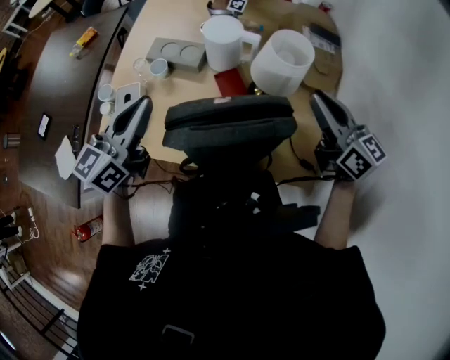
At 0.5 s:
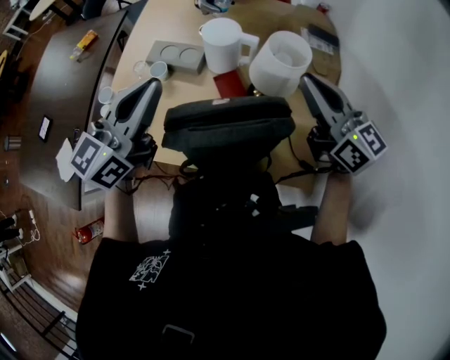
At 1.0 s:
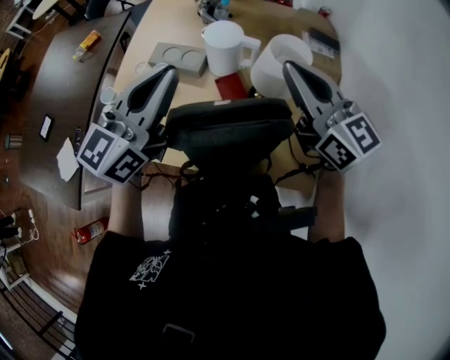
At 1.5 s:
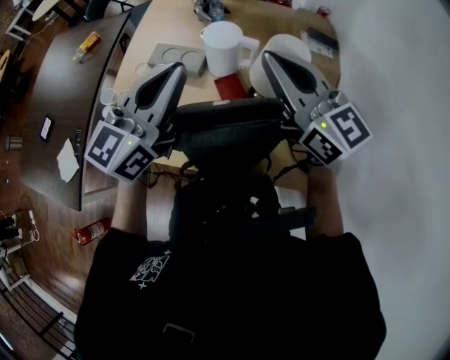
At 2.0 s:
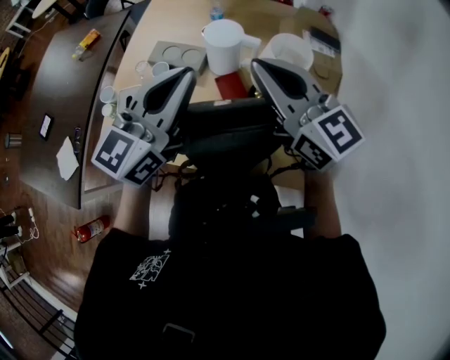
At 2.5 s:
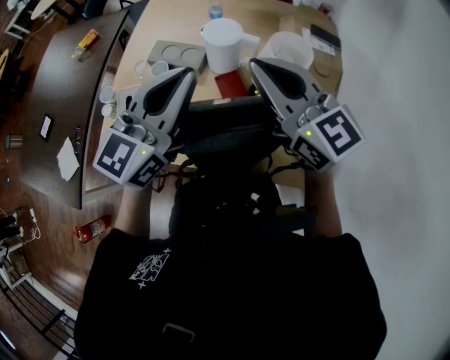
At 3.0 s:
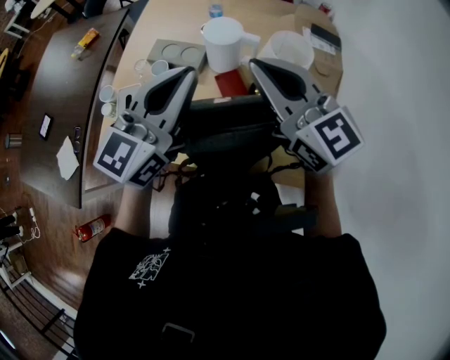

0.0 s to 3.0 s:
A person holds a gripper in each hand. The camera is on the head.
0.0 to 1.5 s: The left gripper travels to the right and upward by about 10 cm. Meanwhile the right gripper is displaced to the left and upward by roughly 15 cm.
1.5 to 3.0 s: The grippers stay close to where they were, moving slightly.

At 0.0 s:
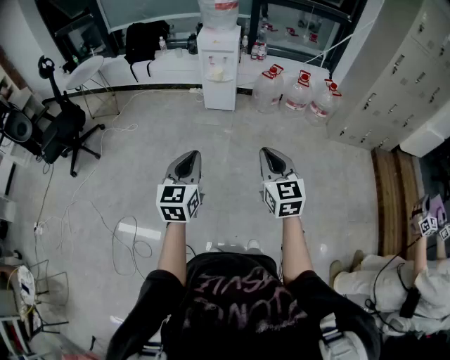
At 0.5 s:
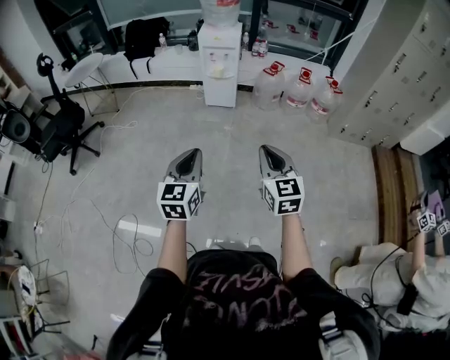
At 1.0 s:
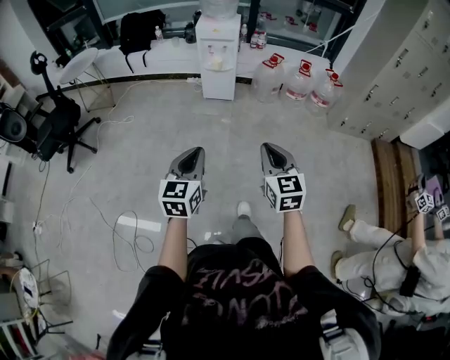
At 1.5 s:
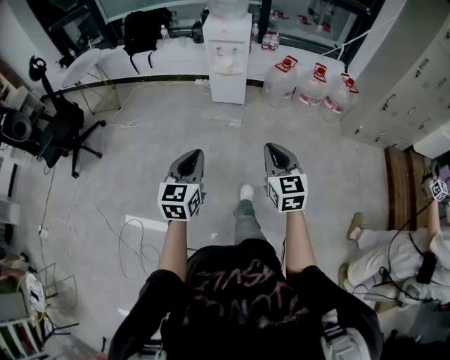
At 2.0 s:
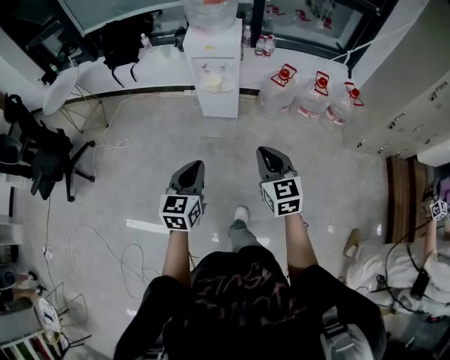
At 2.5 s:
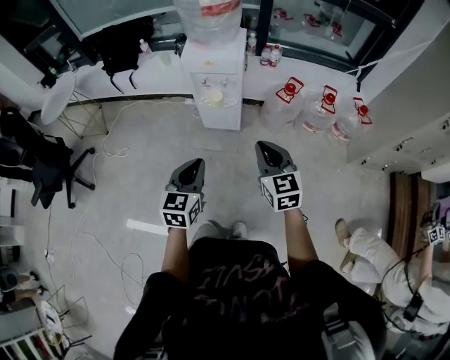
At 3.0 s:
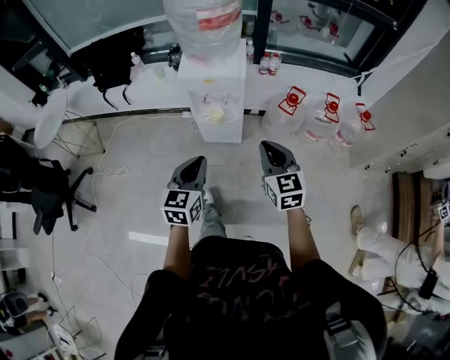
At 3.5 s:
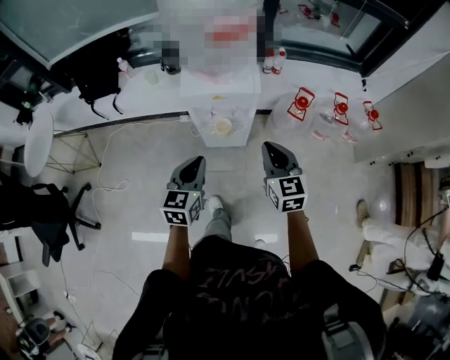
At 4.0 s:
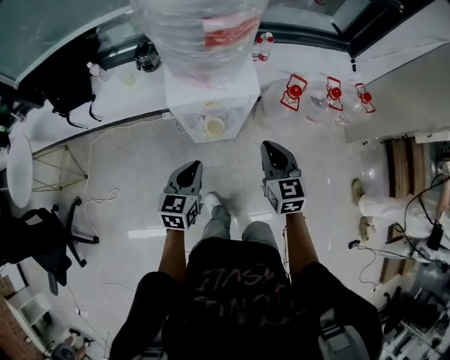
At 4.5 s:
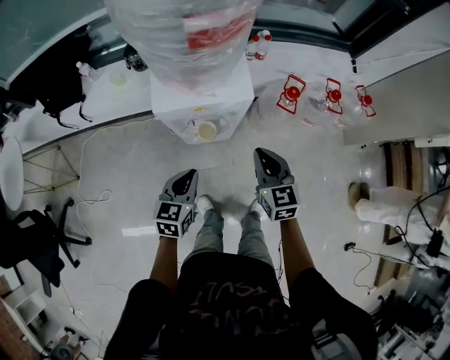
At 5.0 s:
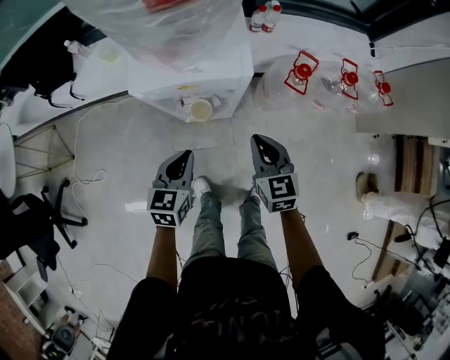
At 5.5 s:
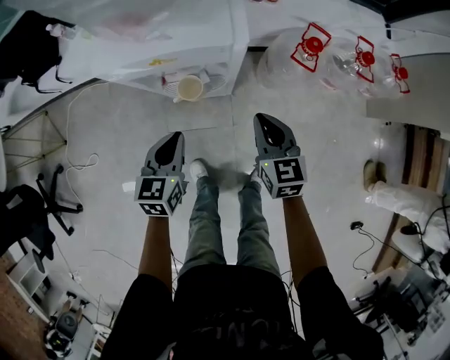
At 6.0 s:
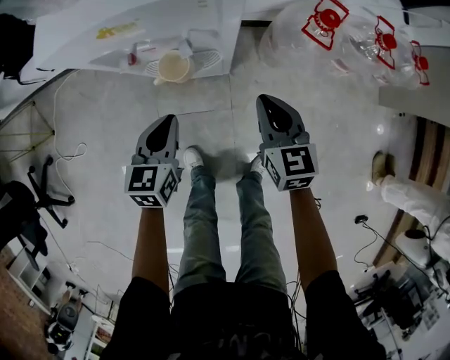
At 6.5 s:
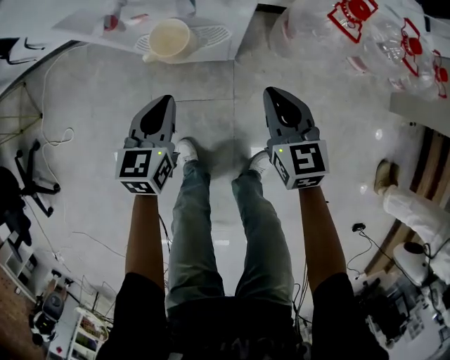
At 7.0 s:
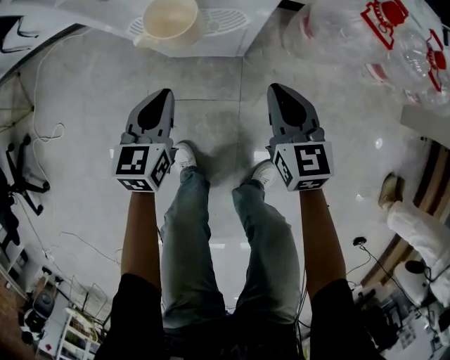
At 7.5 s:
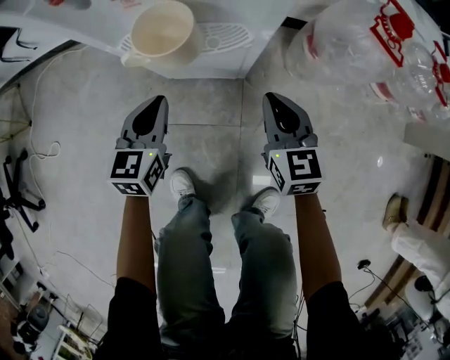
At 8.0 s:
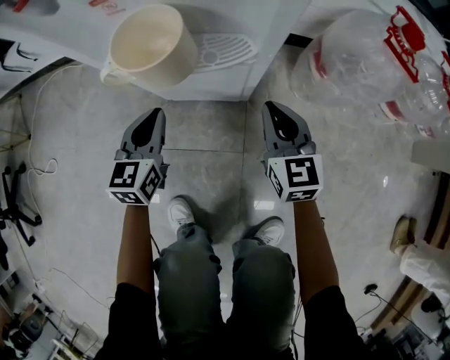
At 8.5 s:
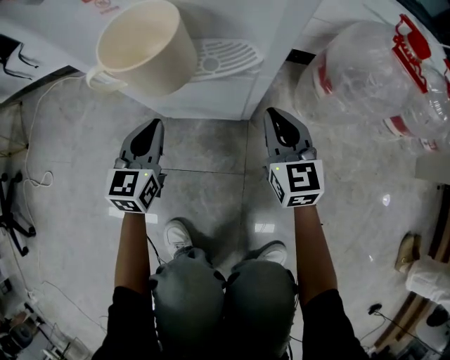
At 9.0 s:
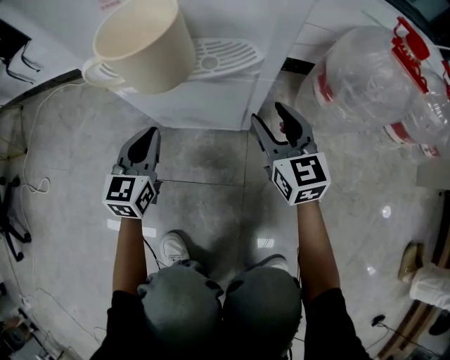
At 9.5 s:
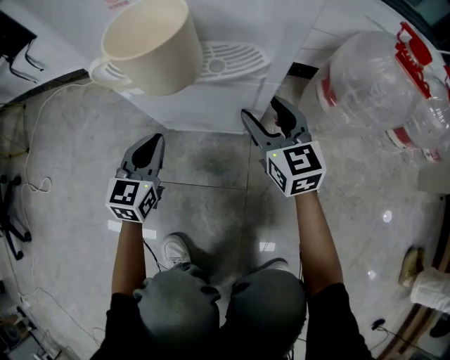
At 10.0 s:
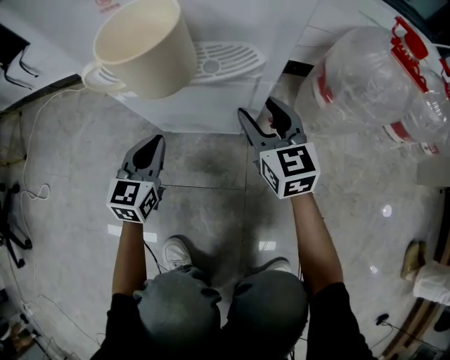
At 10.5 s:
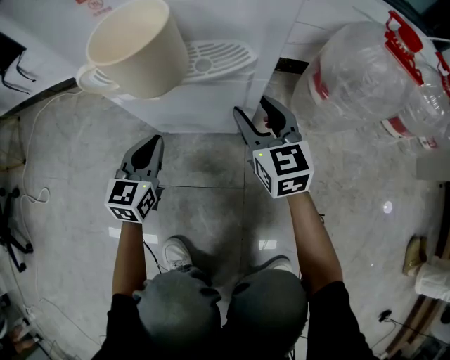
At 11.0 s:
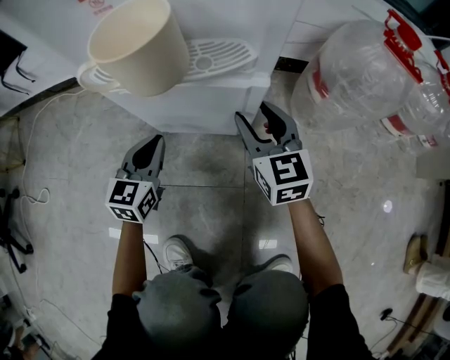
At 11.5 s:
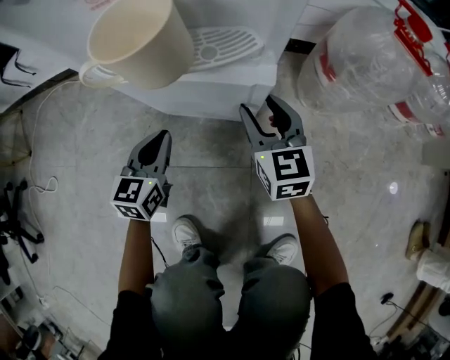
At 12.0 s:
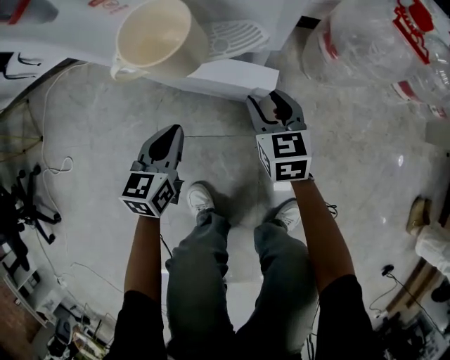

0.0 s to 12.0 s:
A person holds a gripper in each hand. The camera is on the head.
0.0 to 2.0 s: Both grippers travel together forward, roughly 40 cm.
2.0 to 4.0 s: The pair of grippers is taken forward, some 50 cm. The left gripper rotates roughly 20 degrees.
4.0 to 6.0 s: The two grippers go about 25 cm downward.
6.0 to 8.0 s: The grippers both shift downward by approximately 30 cm.
8.0 to 10.0 s: The right gripper goes roughly 5 cm forward, and opens its fingers. Meanwhile the left gripper goes roughly 10 cm downward.
10.0 to 12.0 s: The left gripper is displaced backward and upward by roughly 10 cm. Meanwhile the right gripper shifts about 5 cm backward.

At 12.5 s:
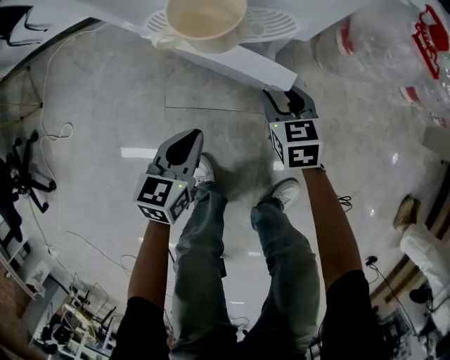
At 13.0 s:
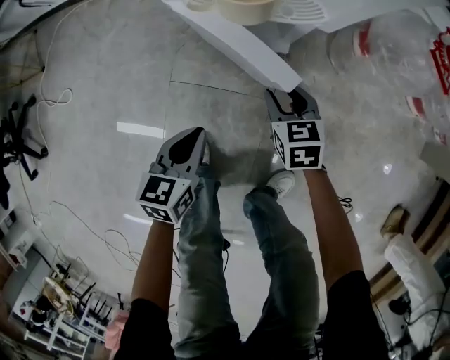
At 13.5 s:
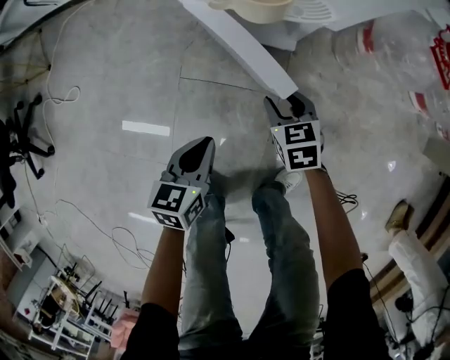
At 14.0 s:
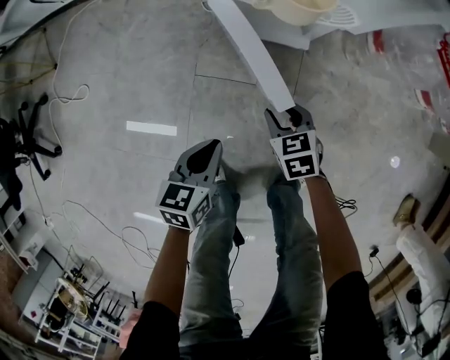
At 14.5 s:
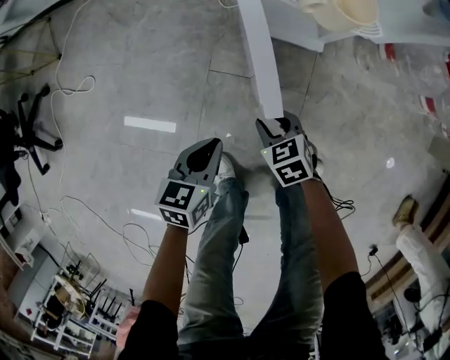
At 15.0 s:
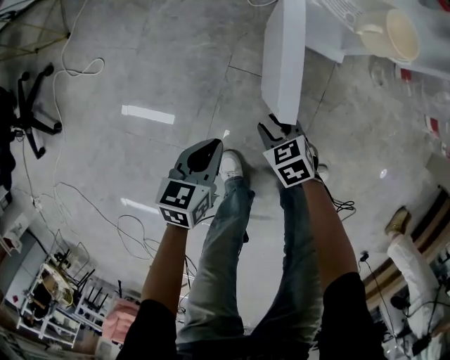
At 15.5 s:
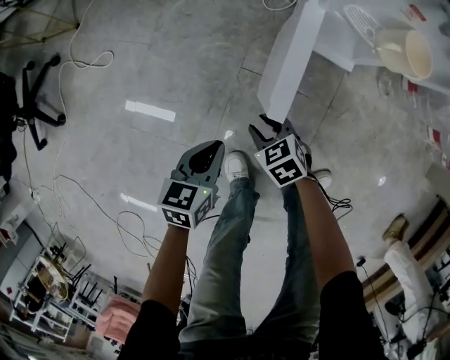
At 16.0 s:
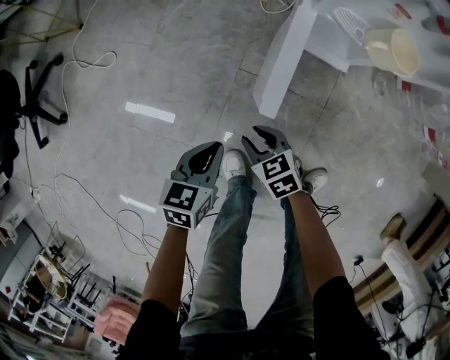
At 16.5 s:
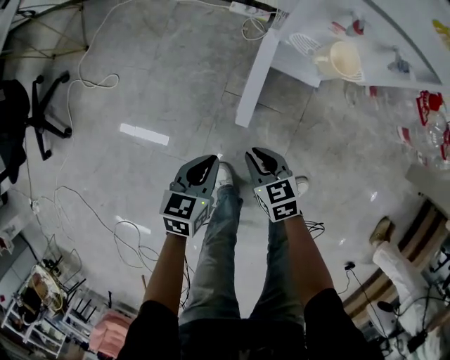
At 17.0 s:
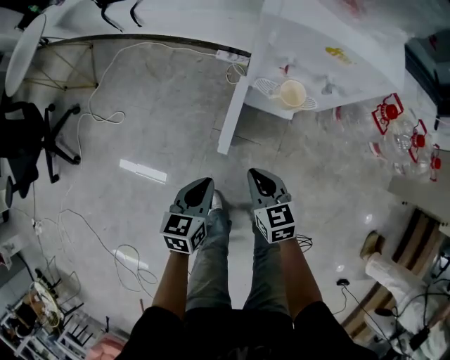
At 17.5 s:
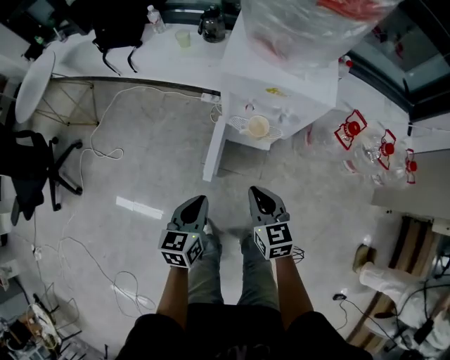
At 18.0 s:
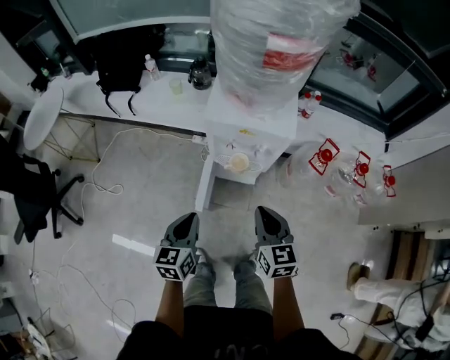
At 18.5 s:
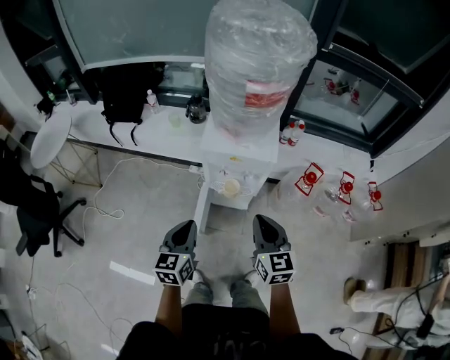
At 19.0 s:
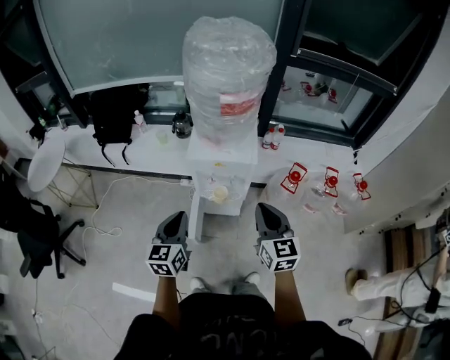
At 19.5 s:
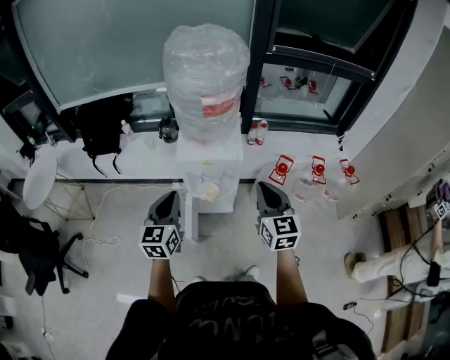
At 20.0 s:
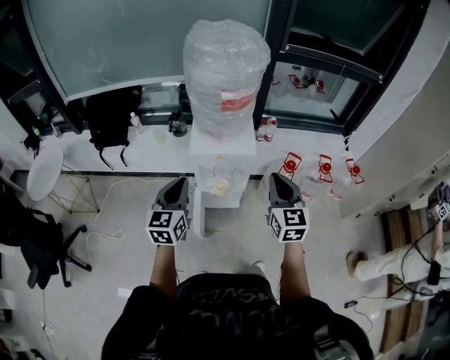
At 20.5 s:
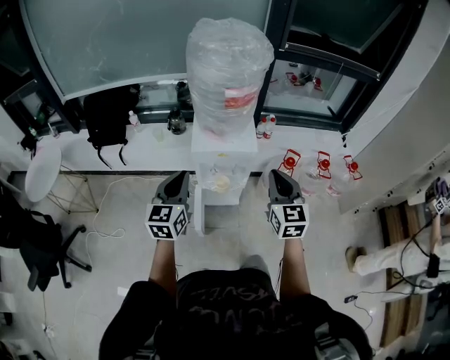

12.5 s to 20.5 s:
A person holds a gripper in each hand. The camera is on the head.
12.5 to 14.5 s: Both grippers move to the left and backward, roughly 20 cm. The right gripper turns by roughly 30 degrees.
14.5 to 16.5 s: Both grippers move upward and to the left, some 15 cm.
16.5 to 18.5 s: The two grippers go approximately 50 cm upward. The right gripper changes its angle by about 40 degrees; the left gripper swivels about 30 degrees.
18.5 to 20.5 s: Both grippers travel together upward, approximately 15 cm. The right gripper changes its angle by approximately 20 degrees.

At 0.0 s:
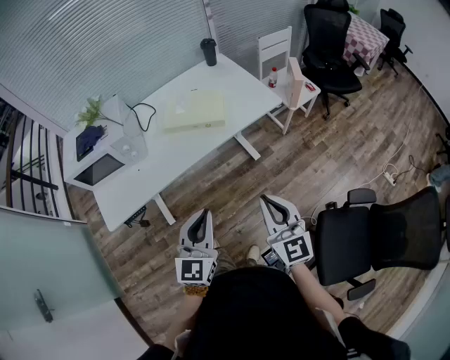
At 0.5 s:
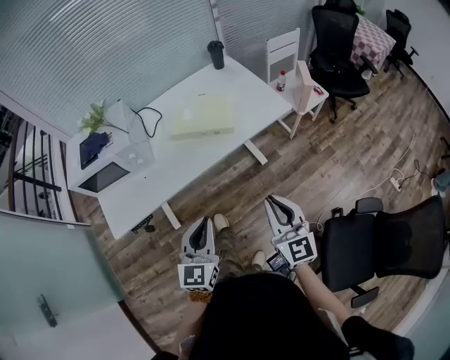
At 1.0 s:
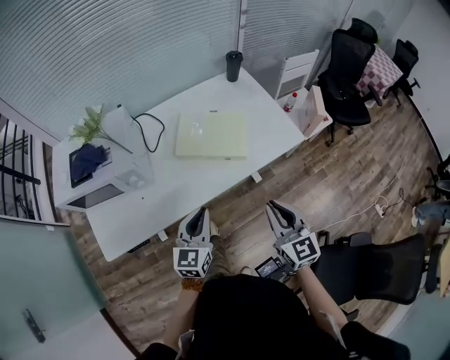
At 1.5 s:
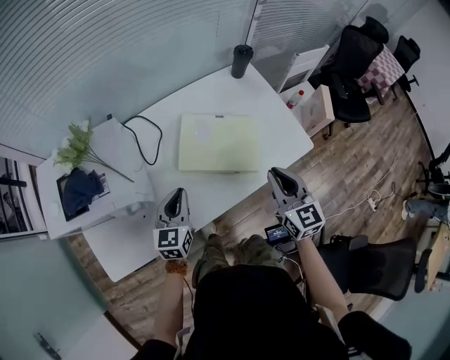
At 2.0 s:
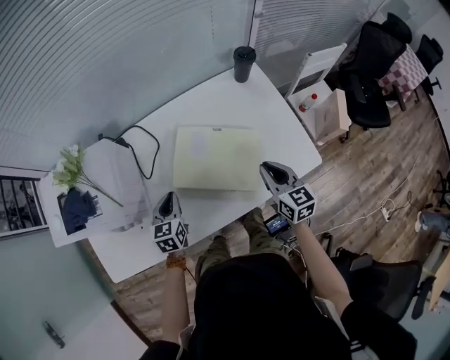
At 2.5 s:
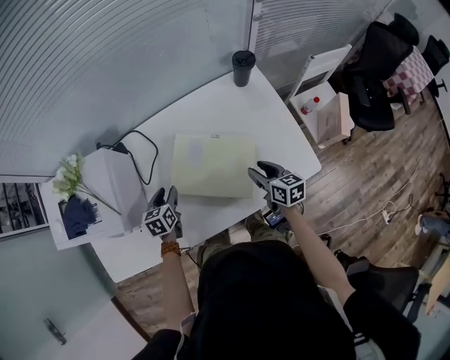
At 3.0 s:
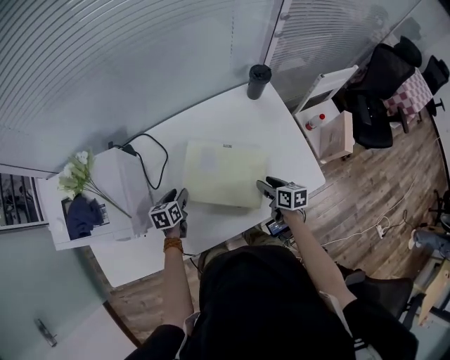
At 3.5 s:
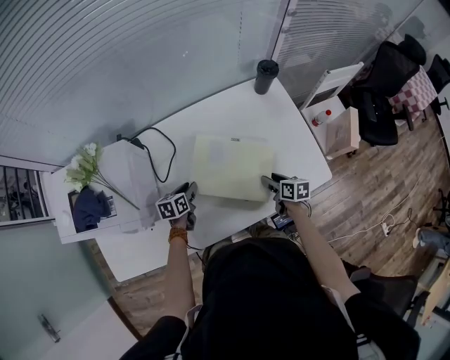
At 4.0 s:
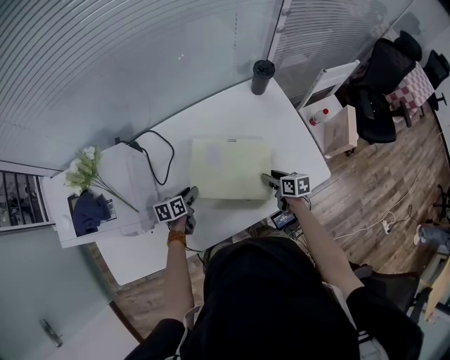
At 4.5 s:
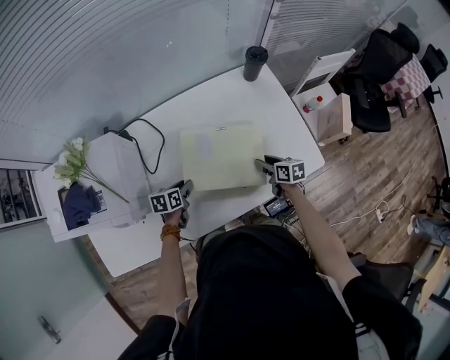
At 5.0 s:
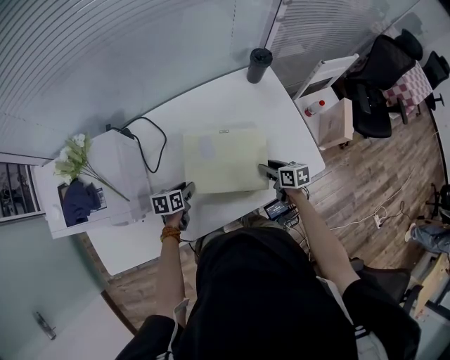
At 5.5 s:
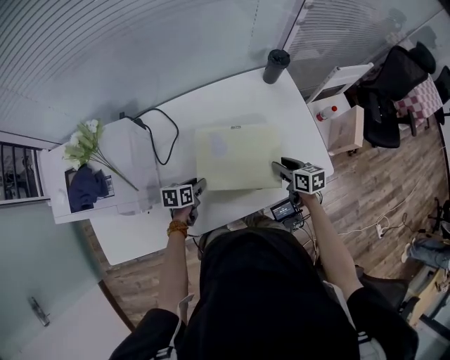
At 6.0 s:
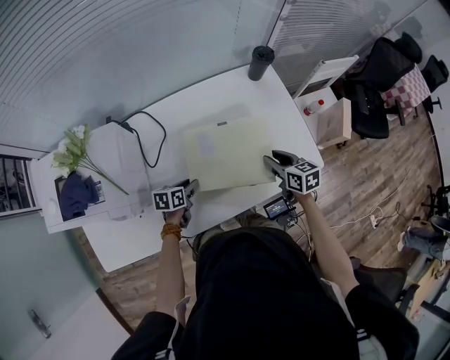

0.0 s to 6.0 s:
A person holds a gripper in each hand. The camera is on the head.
0.0 to 2.0 s: The two grippers travel together, forward, about 50 cm. The left gripper heads downward, covering some 20 cm, and changes its angle by approximately 40 degrees. The right gripper changes its angle by about 30 degrees.
2.0 to 4.0 s: The two grippers go about 15 cm downward. The right gripper changes its angle by approximately 30 degrees, and opens its fingers. The left gripper rotates about 40 degrees, and opens up.
4.0 to 6.0 s: The right gripper shifts some 10 cm upward.
